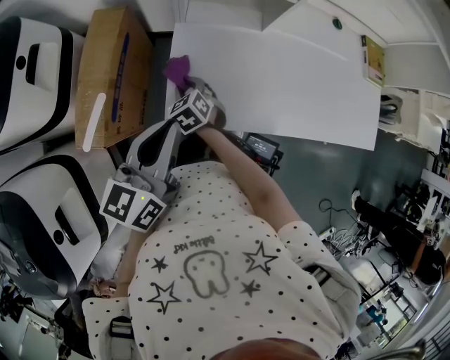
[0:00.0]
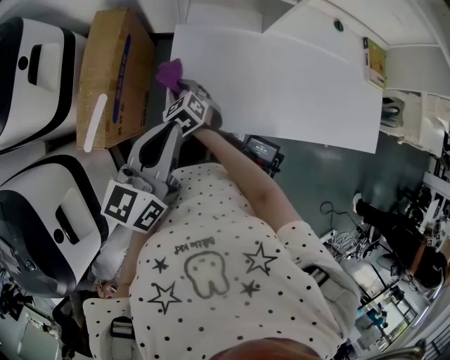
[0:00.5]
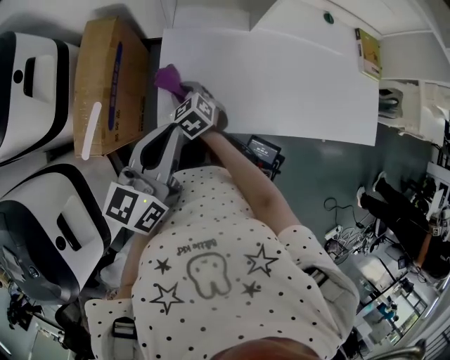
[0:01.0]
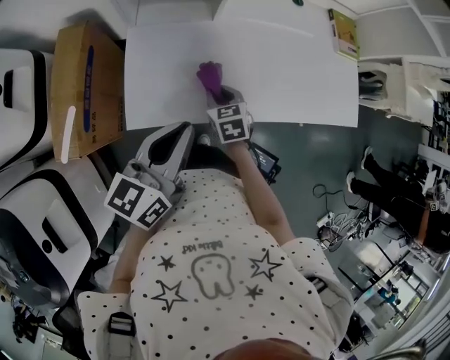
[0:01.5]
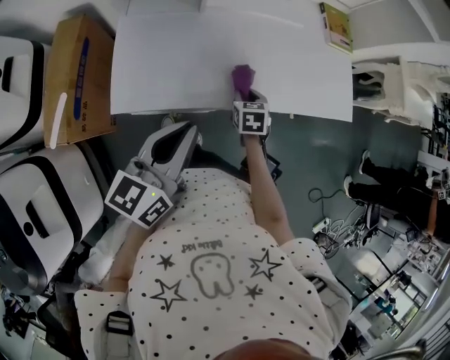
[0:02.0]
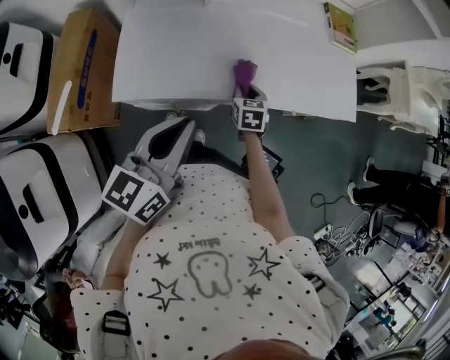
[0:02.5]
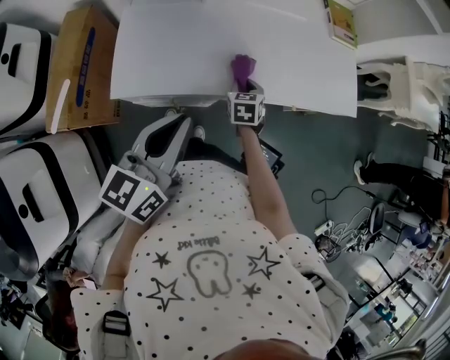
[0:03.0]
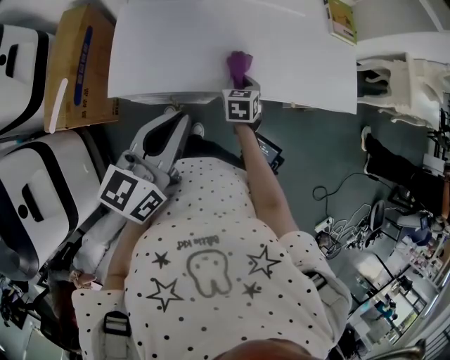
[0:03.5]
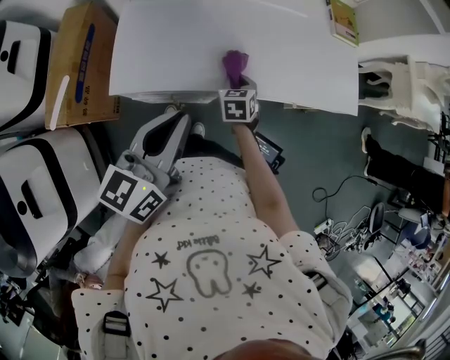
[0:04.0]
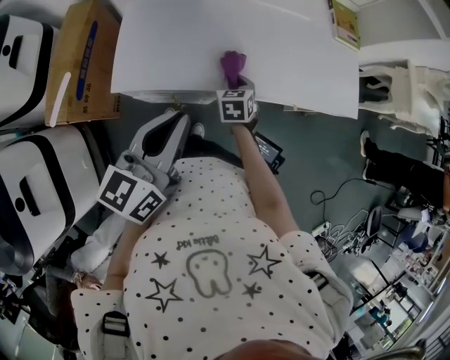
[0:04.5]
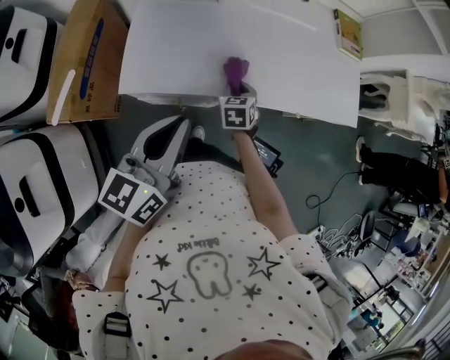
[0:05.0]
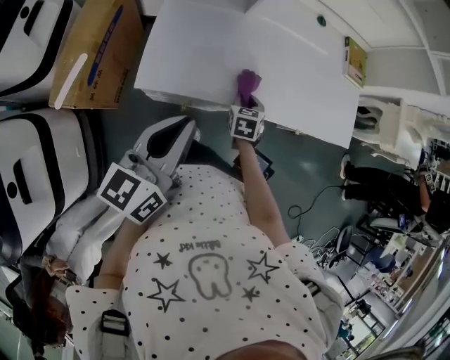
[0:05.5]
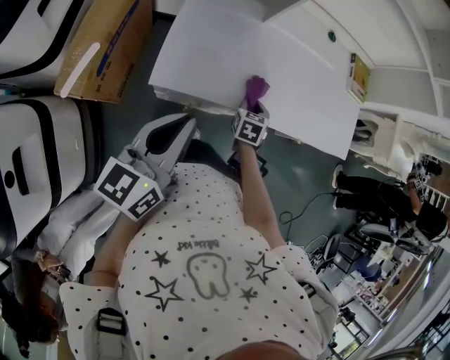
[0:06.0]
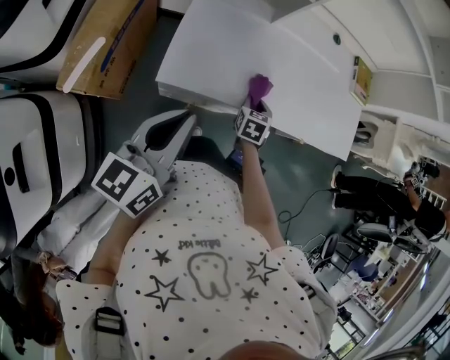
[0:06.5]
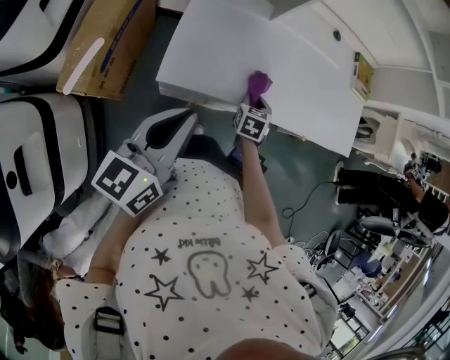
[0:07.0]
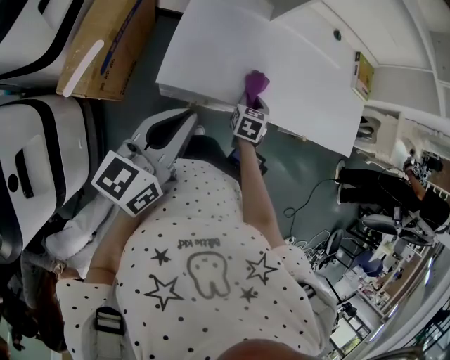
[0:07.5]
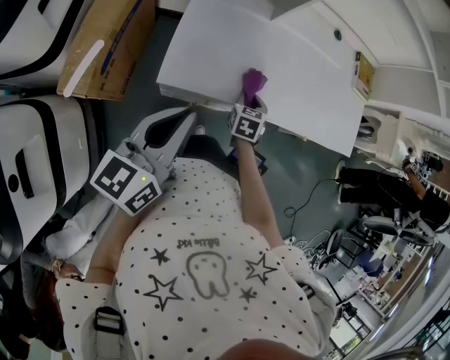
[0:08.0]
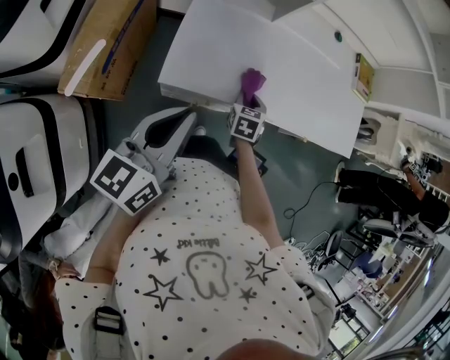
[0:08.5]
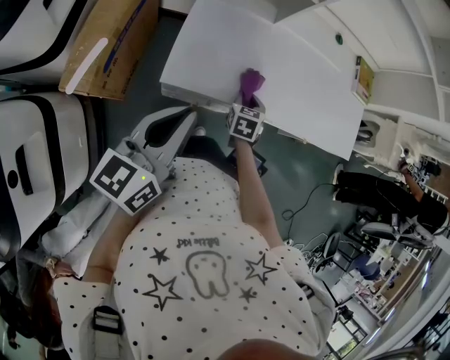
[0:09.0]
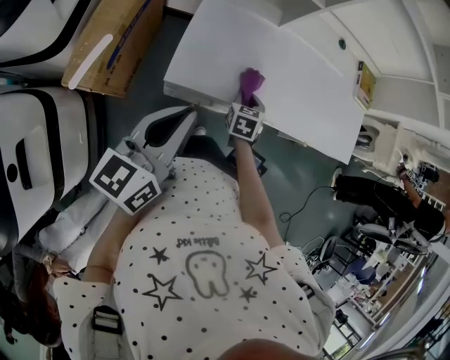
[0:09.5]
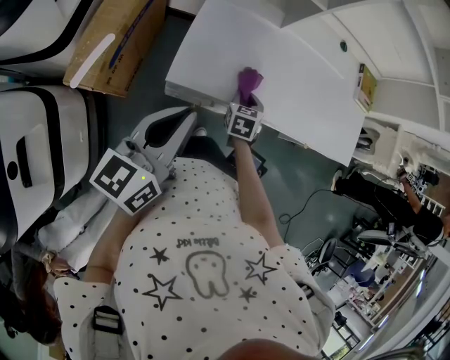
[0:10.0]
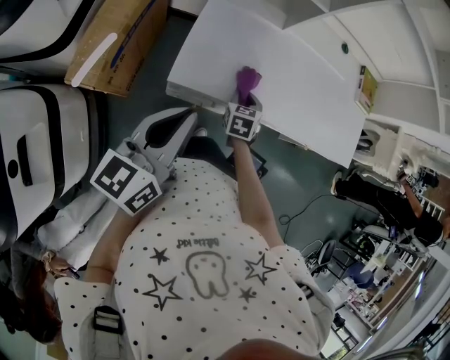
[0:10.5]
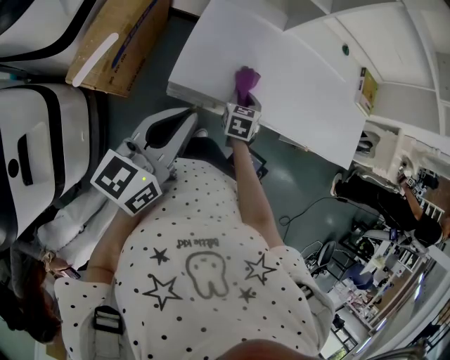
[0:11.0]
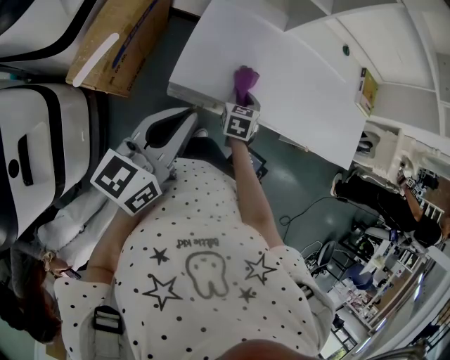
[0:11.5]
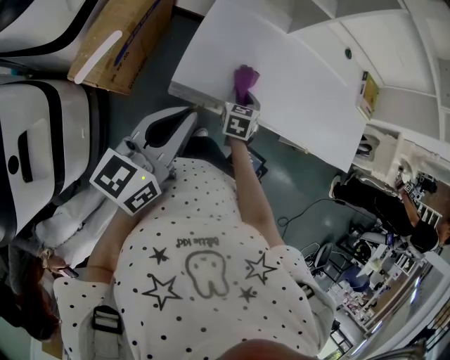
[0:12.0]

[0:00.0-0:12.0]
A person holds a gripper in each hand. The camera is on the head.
0:00.0 to 0:02.0: The right gripper moves to the right, some 40 cm, and turns by about 40 degrees; the left gripper moves to the right, about 20 cm.
0:02.0 to 0:04.0: The grippers stay close to where they were, moving slightly.
0:04.0 to 0:06.0: The right gripper changes place by approximately 5 cm. Meanwhile the left gripper shifts roughly 15 cm to the left.
0:06.0 to 0:08.0: The grippers move only a little.
0:08.0 to 0:10.0: The grippers make only small movements.
0:10.0 to 0:12.0: The grippers move only a little.

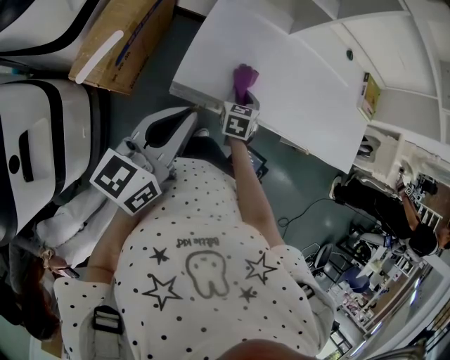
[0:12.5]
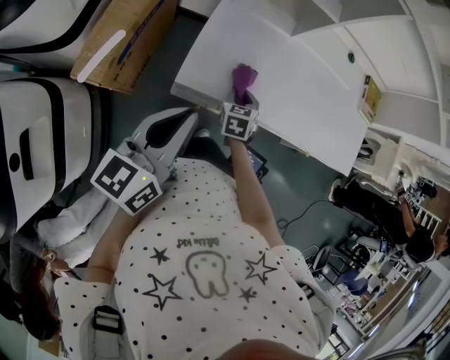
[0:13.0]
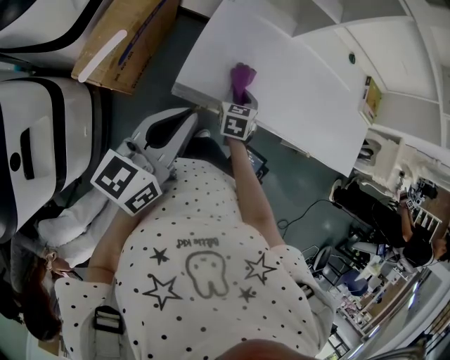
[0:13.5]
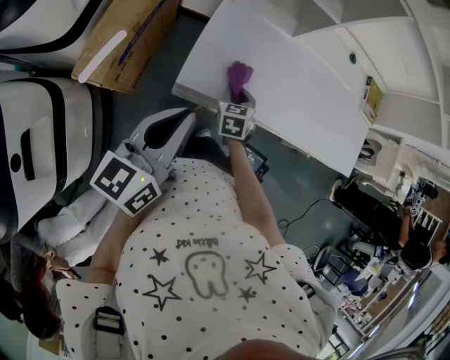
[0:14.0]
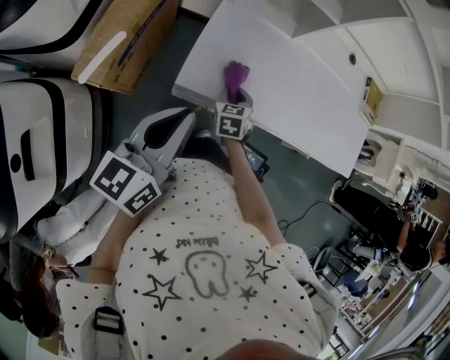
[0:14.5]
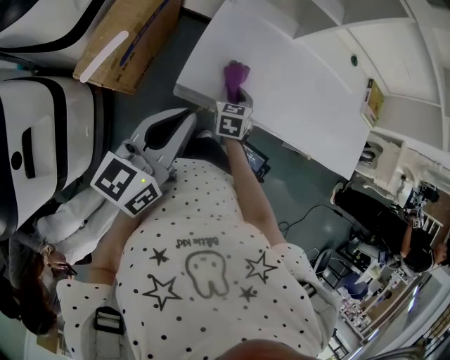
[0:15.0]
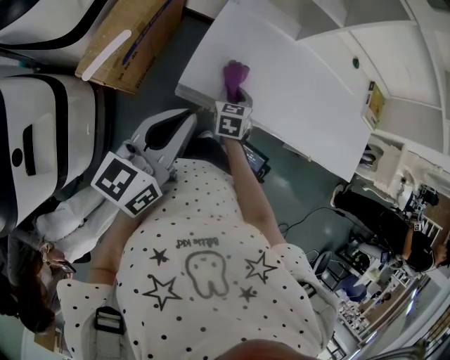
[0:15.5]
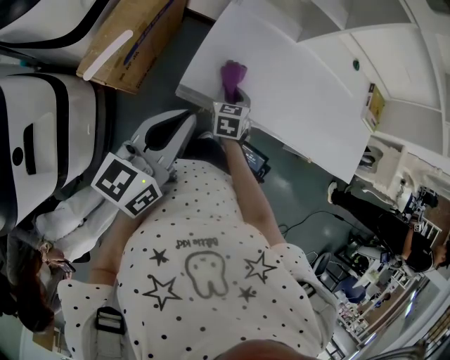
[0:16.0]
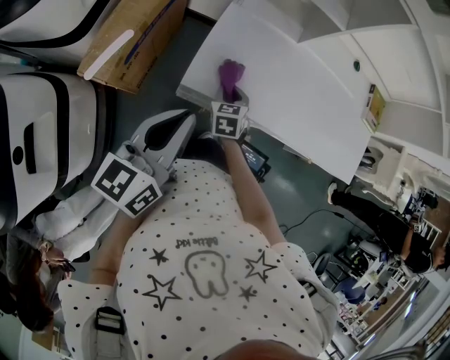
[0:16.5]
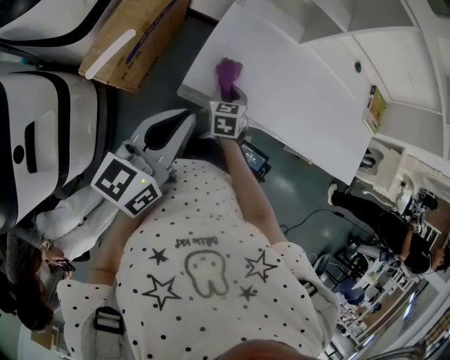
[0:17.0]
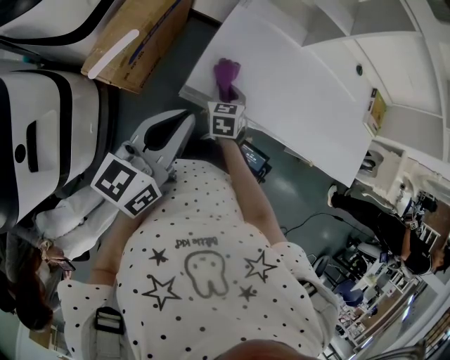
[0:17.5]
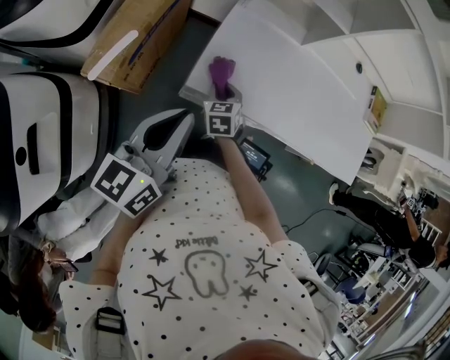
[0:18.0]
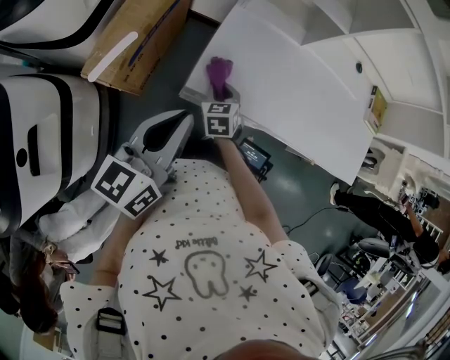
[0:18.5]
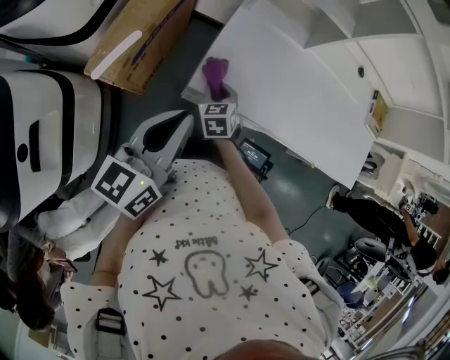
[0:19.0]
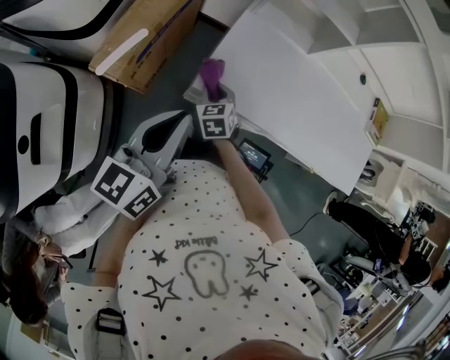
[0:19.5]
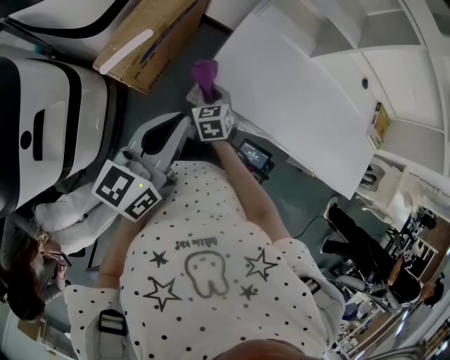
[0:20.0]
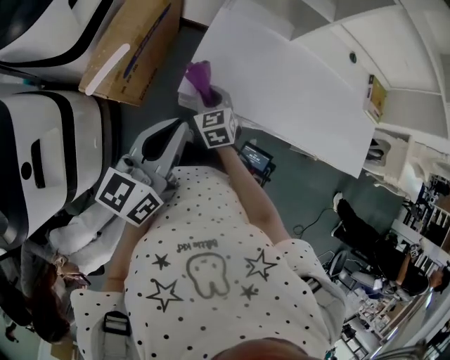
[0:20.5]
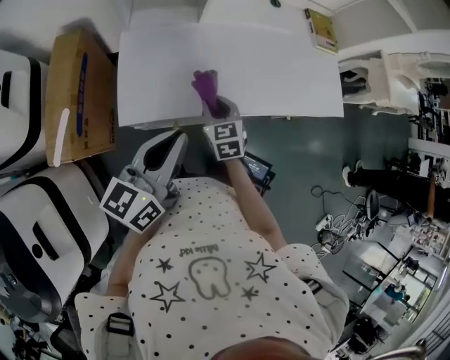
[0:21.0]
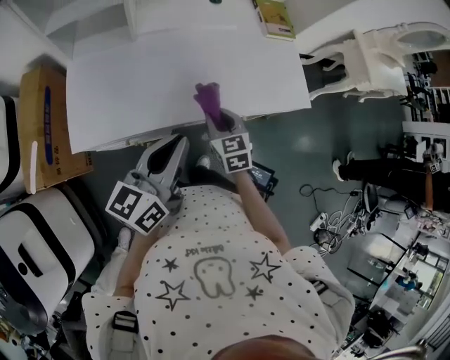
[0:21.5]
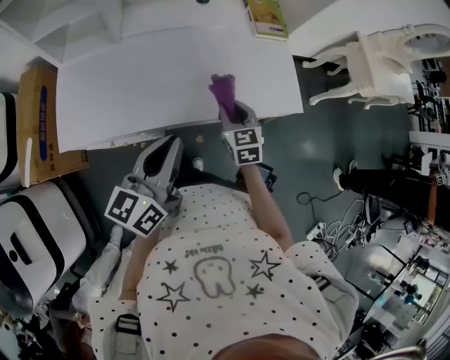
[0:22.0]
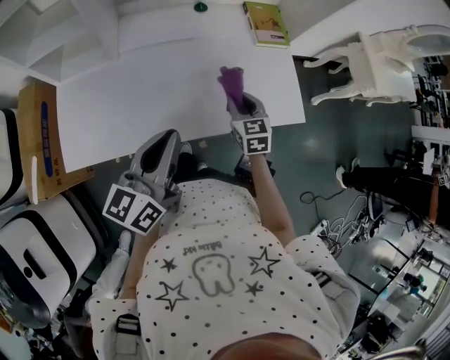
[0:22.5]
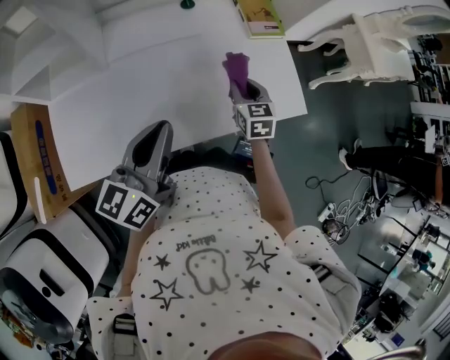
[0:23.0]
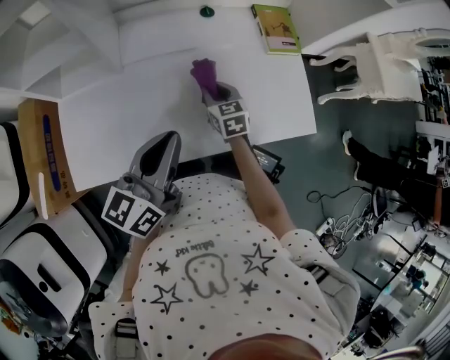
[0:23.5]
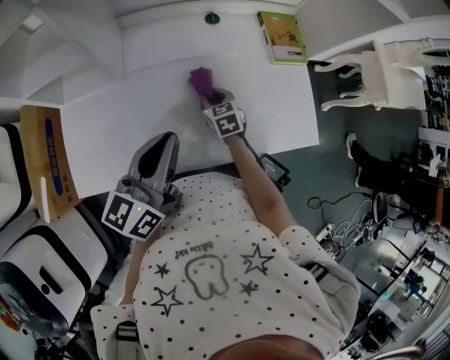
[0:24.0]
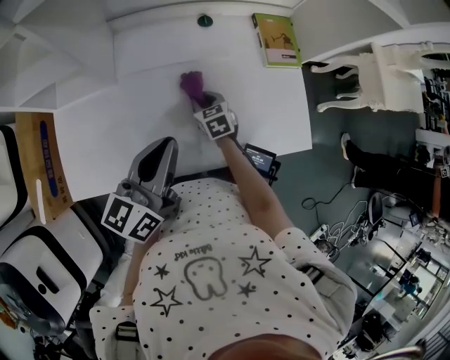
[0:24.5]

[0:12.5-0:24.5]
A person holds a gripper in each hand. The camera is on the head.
0:12.5 to 0:14.5: The grippers stay close to where they were, moving slightly.
0:14.5 to 0:16.5: There are only small adjustments of the grippers.
0:16.5 to 0:18.5: The grippers stay close to where they were, moving slightly.
0:20.5 to 0:22.5: The pair of grippers is taken some 50 cm. The left gripper rotates roughly 20 degrees. The right gripper changes its angle by some 40 degrees.
0:22.5 to 0:24.5: The right gripper is displaced to the left, forward and downward by roughly 20 cm. Meanwhile the left gripper heads forward, covering about 10 cm.

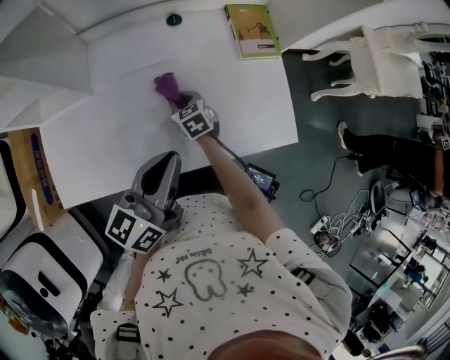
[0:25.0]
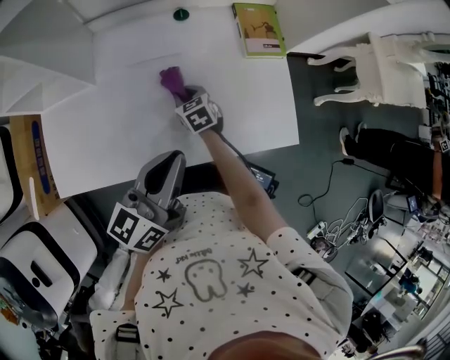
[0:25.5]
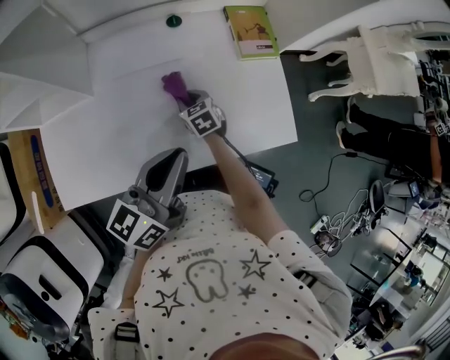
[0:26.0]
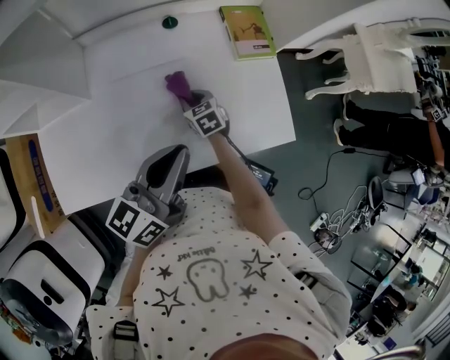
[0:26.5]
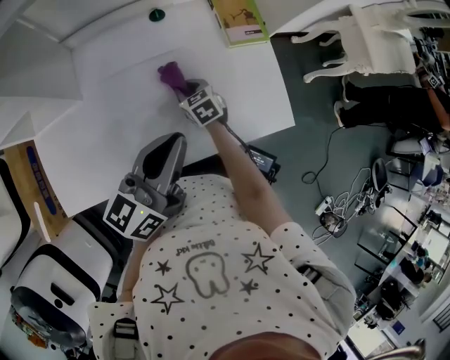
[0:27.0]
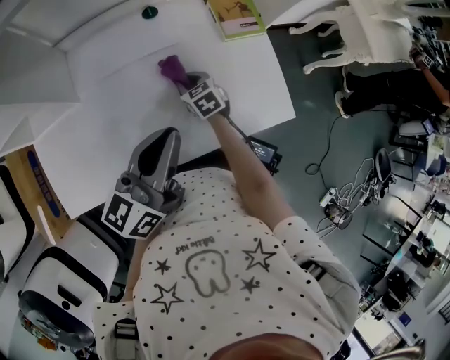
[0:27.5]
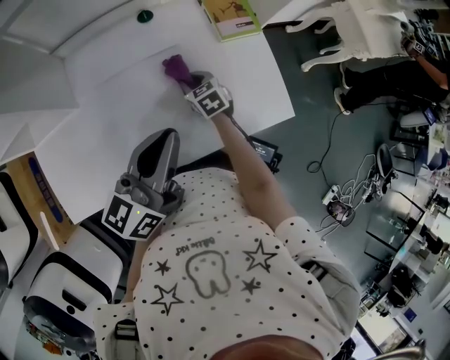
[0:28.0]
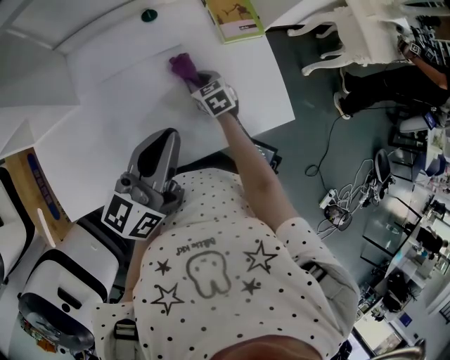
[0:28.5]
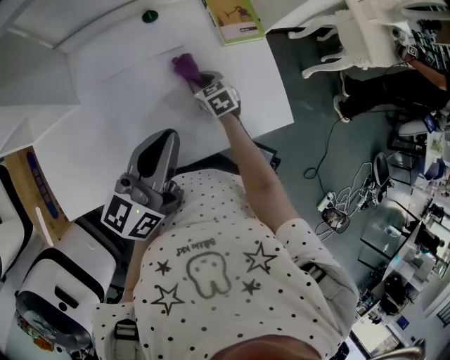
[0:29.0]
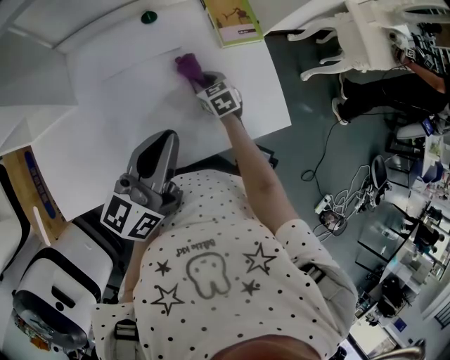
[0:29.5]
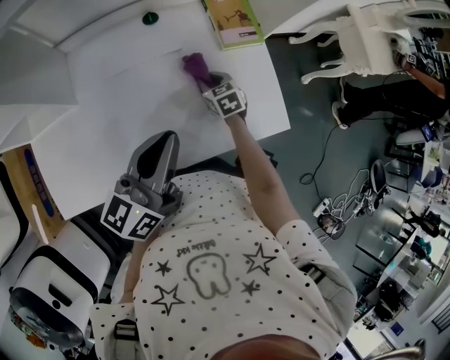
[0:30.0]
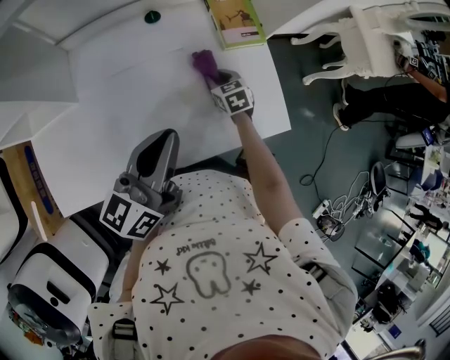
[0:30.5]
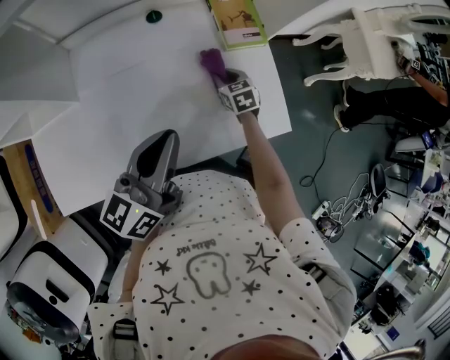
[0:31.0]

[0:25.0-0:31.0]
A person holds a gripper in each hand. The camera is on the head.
0:25.0 to 0:27.0: The right gripper changes place by some 5 cm.
0:27.0 to 0:29.0: The right gripper heads to the right, covering about 5 cm.
0:29.0 to 0:31.0: The right gripper moves to the right, about 10 cm.
